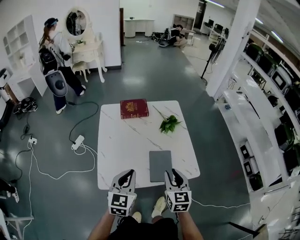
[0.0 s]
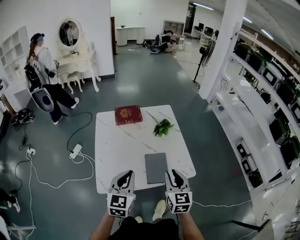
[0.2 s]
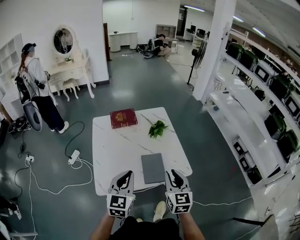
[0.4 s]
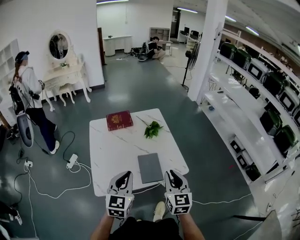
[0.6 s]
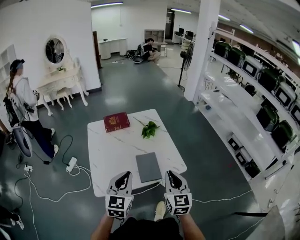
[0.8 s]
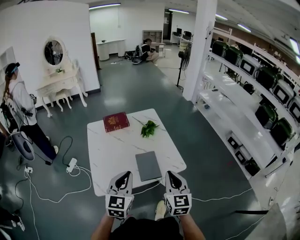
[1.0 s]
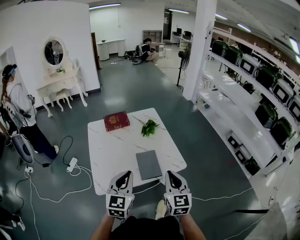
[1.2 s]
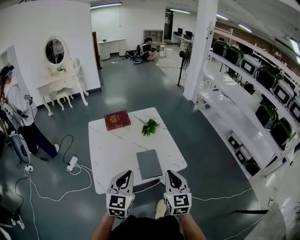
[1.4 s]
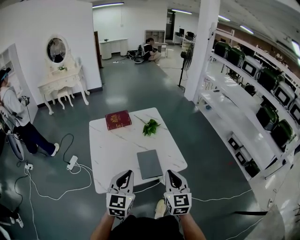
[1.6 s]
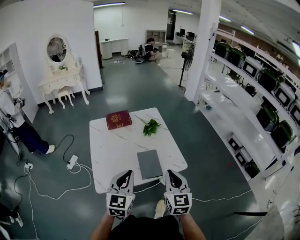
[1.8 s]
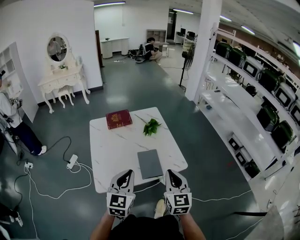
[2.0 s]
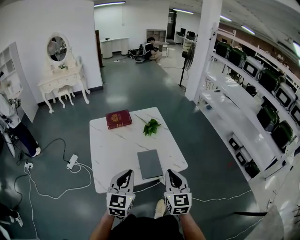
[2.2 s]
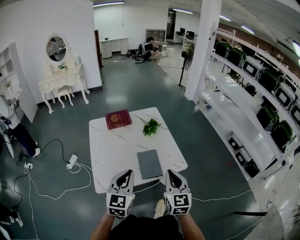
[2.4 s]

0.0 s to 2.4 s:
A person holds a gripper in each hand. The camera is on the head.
0.0 to 1.2 s: The left gripper goes roughly 10 cm backward, to the right and upward. The right gripper moves backward, upward and to the right, about 15 cm.
1.2 to 2.4 s: The two grippers keep their place.

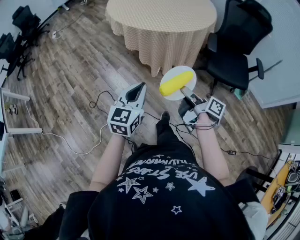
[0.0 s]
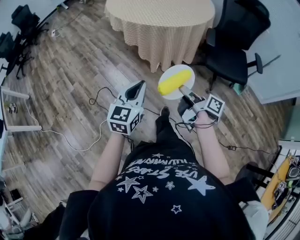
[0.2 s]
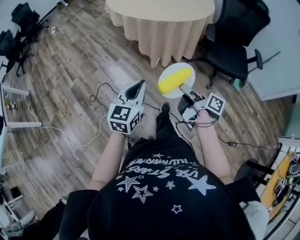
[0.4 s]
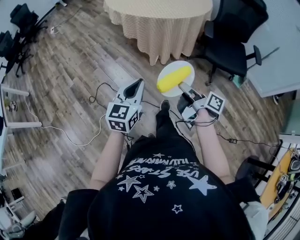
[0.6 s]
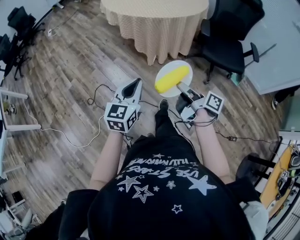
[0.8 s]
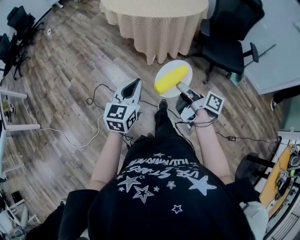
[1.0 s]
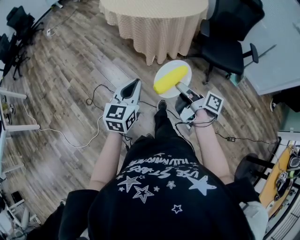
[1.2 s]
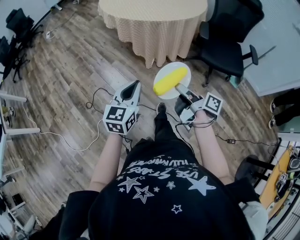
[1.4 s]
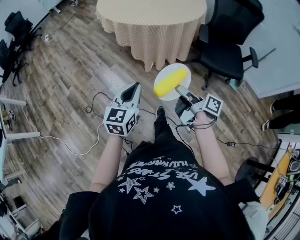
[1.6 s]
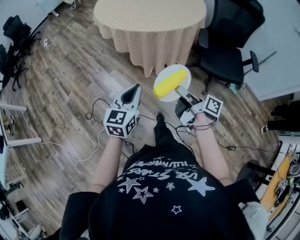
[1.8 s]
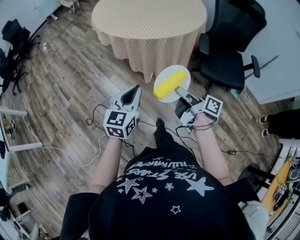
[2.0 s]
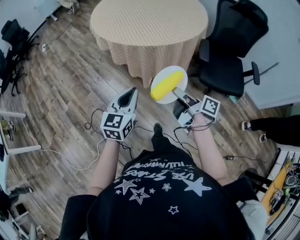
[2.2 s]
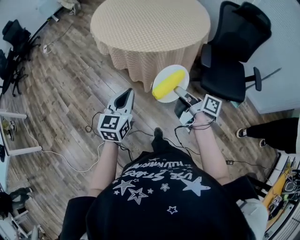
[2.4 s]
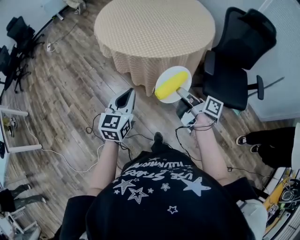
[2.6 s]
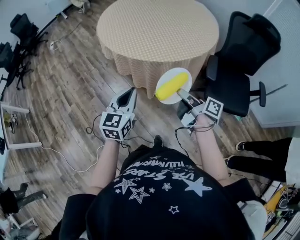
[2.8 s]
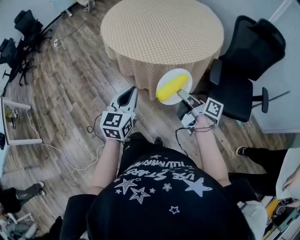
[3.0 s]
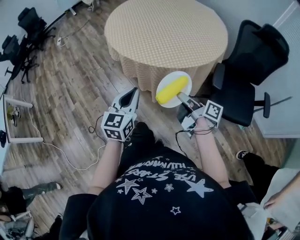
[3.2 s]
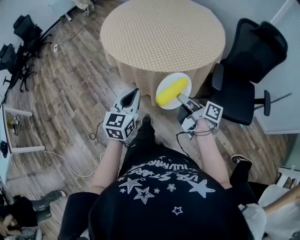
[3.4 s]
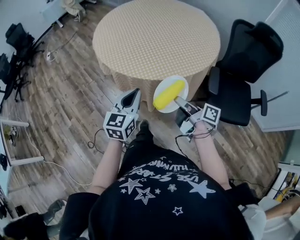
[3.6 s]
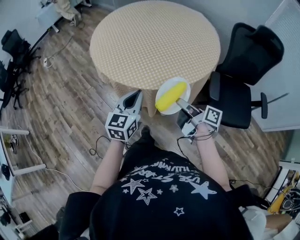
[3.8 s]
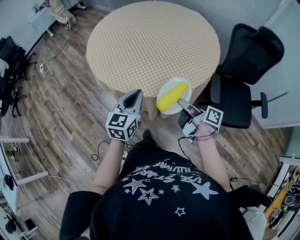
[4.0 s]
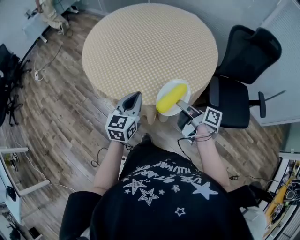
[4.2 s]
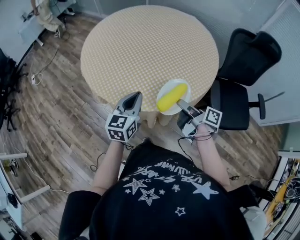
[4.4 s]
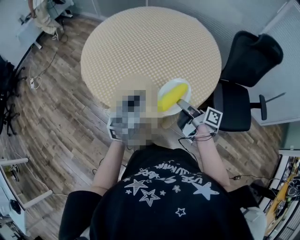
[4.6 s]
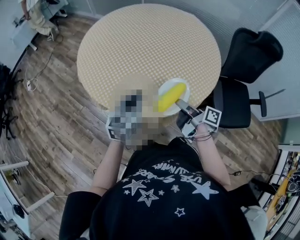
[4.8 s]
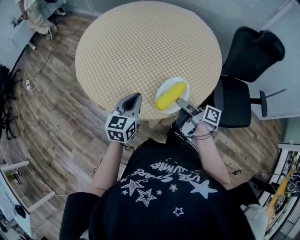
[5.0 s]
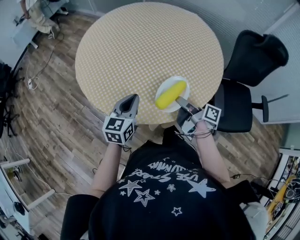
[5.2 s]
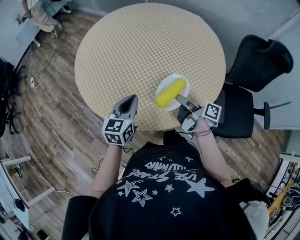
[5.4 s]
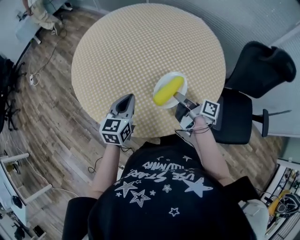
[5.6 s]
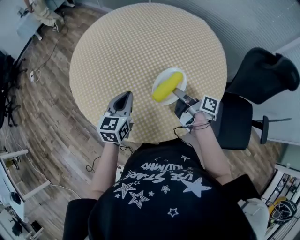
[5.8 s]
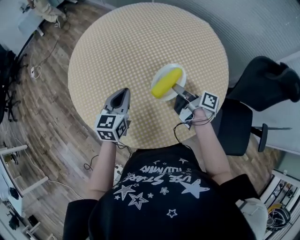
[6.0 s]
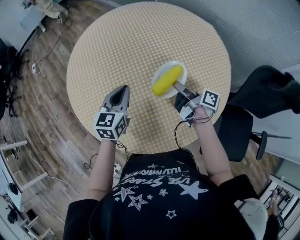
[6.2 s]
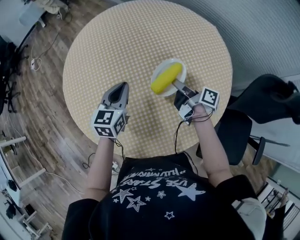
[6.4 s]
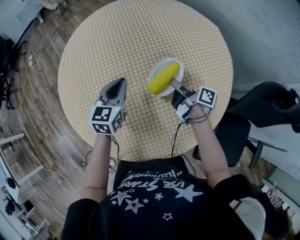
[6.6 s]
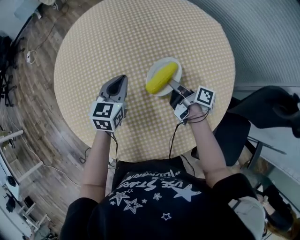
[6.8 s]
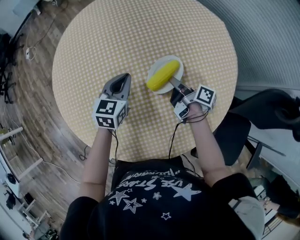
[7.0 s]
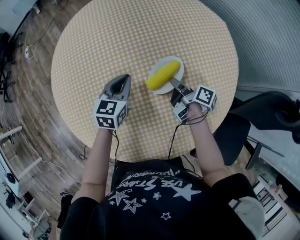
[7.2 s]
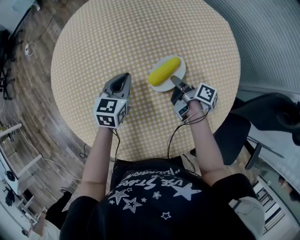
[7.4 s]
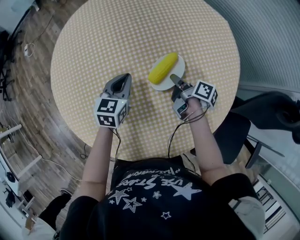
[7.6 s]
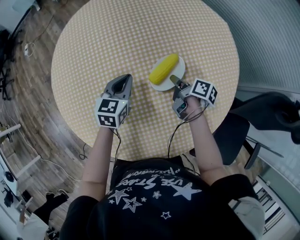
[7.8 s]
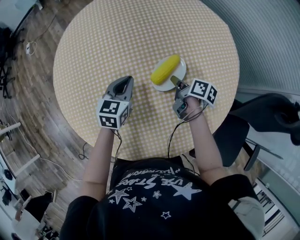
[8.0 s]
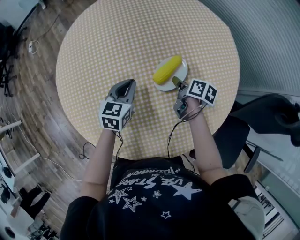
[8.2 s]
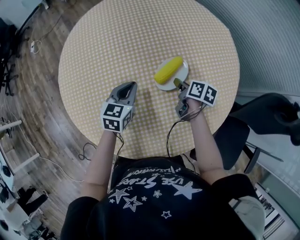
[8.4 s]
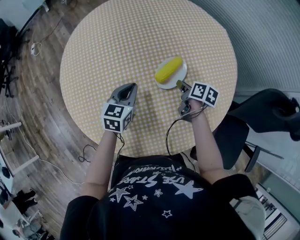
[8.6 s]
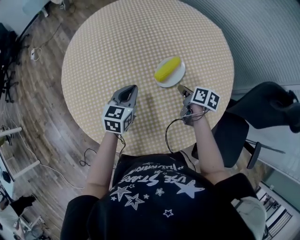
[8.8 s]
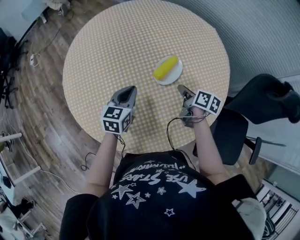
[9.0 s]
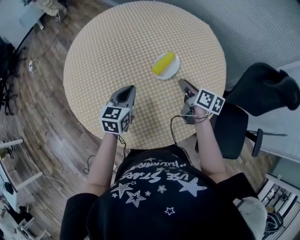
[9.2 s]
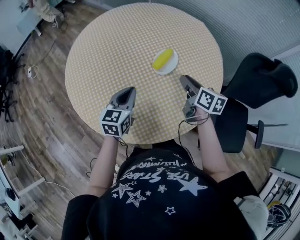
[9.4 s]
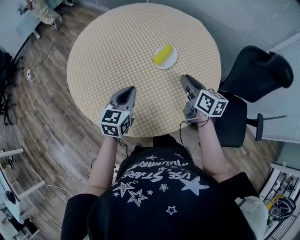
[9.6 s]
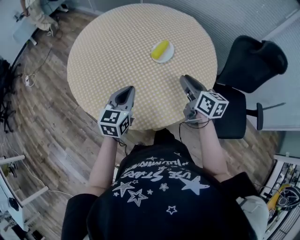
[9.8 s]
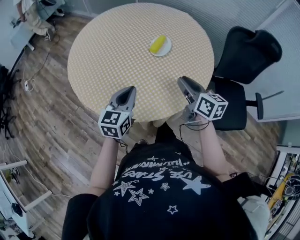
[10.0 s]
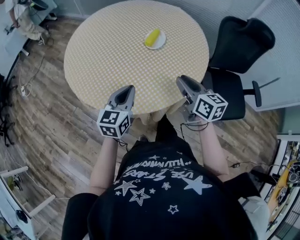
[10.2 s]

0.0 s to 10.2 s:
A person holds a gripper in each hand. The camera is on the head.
0.0 to 1.4 s: Both grippers move backward, about 5 cm.
1.4 to 3.0 s: The grippers both shift forward by approximately 30 cm.
3.0 to 4.4 s: The grippers both shift forward by approximately 25 cm.
4.4 to 5.8 s: The two grippers go approximately 20 cm forward.
5.8 to 7.2 s: The right gripper is displaced forward and downward by roughly 20 cm; the left gripper shifts approximately 20 cm forward, to the right and downward.
7.2 to 8.8 s: The grippers both shift backward by some 5 cm. The right gripper changes its angle by some 30 degrees.
8.8 to 10.2 s: The right gripper heads backward and upward, covering roughly 35 cm, and swivels some 40 degrees. Meanwhile the left gripper goes some 25 cm backward, and rotates approximately 20 degrees.

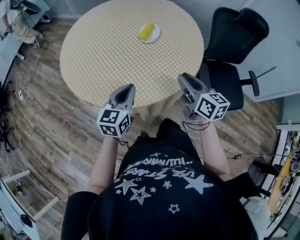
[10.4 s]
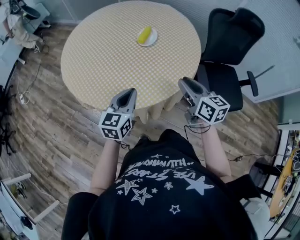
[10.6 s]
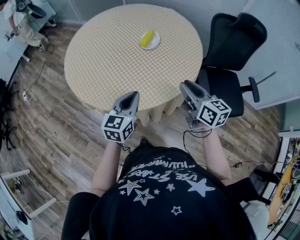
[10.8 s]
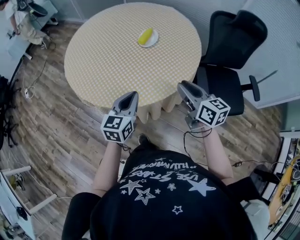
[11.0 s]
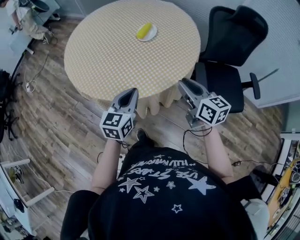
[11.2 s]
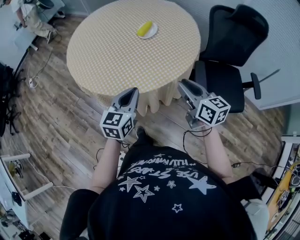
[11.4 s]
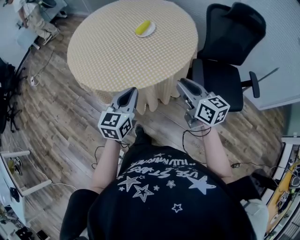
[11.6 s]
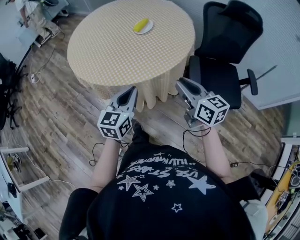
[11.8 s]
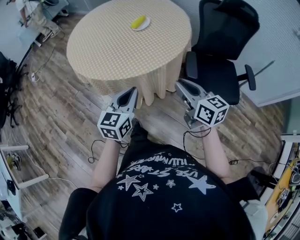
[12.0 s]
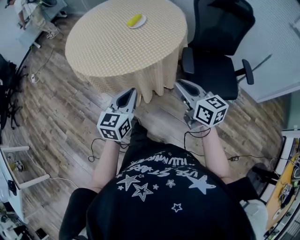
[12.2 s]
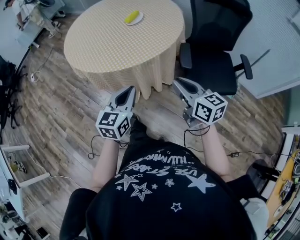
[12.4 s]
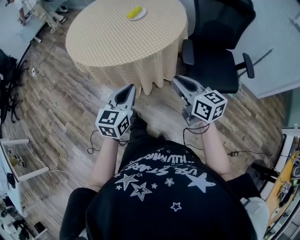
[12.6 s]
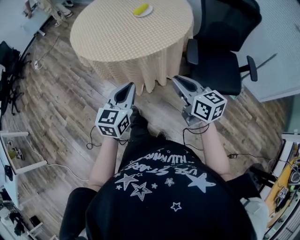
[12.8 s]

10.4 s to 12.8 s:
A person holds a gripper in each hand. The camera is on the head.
10.4 to 11.6 s: The grippers both shift backward and to the right by some 15 cm.
11.6 to 12.8 s: Both grippers move backward, approximately 15 cm.

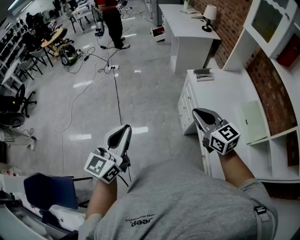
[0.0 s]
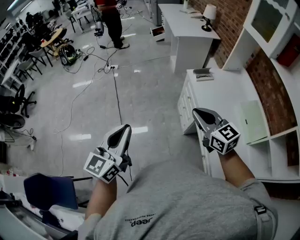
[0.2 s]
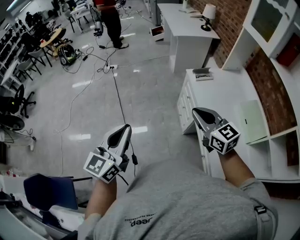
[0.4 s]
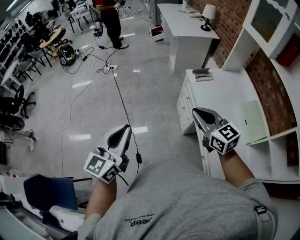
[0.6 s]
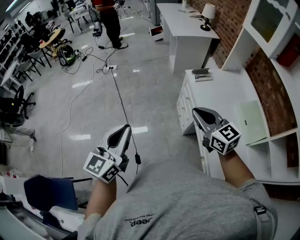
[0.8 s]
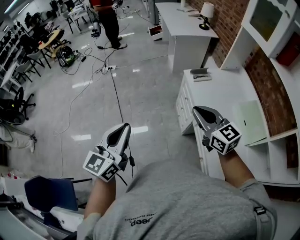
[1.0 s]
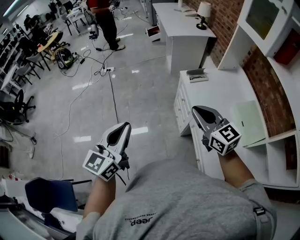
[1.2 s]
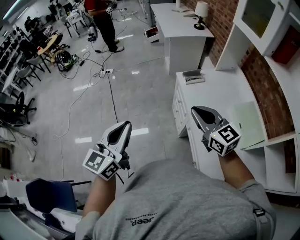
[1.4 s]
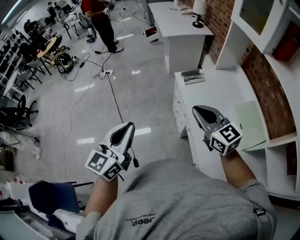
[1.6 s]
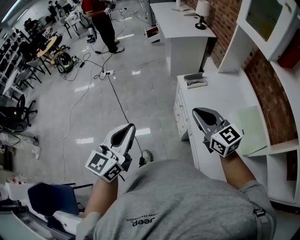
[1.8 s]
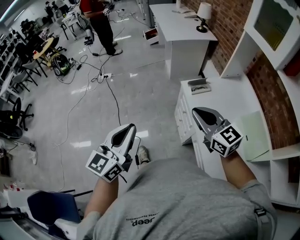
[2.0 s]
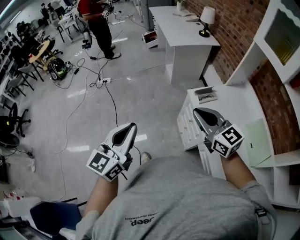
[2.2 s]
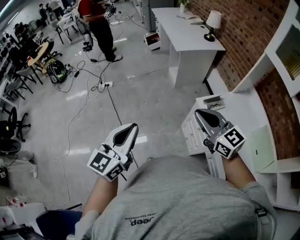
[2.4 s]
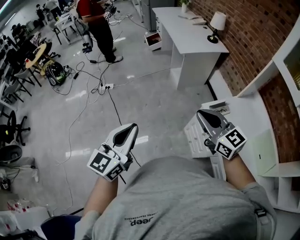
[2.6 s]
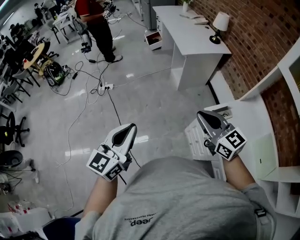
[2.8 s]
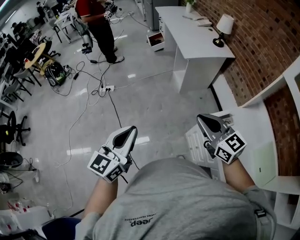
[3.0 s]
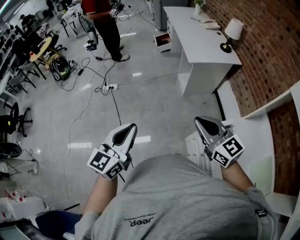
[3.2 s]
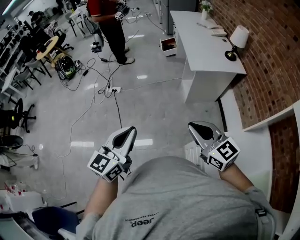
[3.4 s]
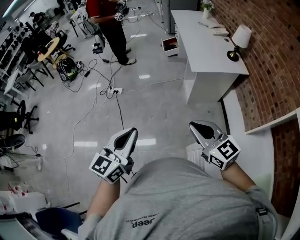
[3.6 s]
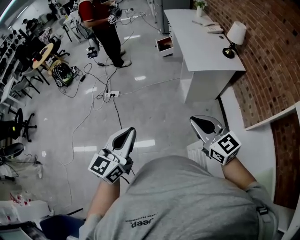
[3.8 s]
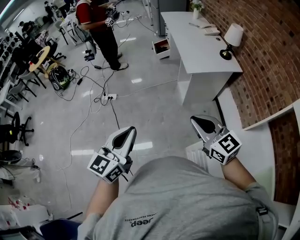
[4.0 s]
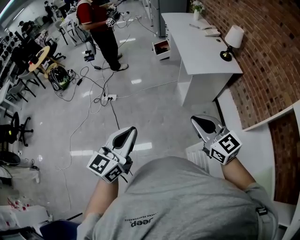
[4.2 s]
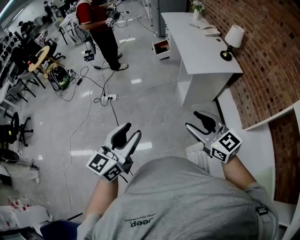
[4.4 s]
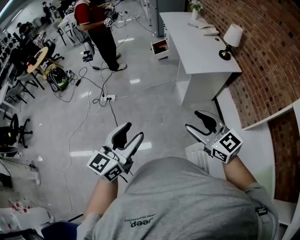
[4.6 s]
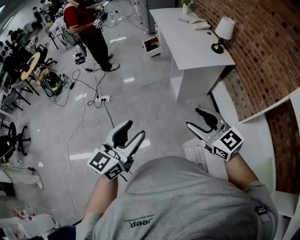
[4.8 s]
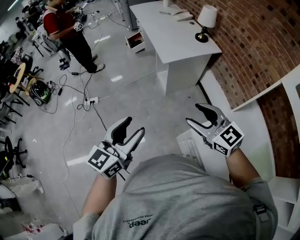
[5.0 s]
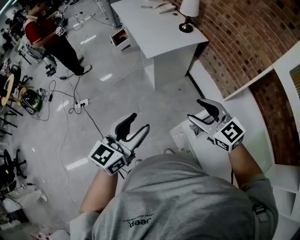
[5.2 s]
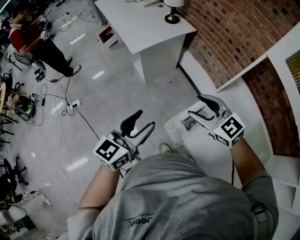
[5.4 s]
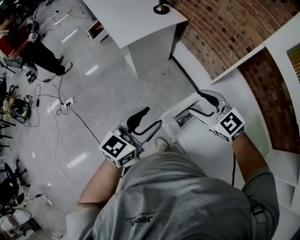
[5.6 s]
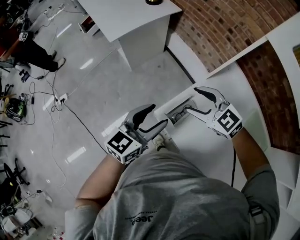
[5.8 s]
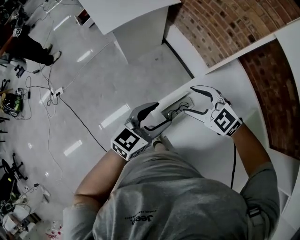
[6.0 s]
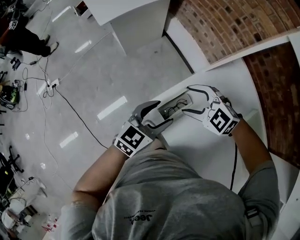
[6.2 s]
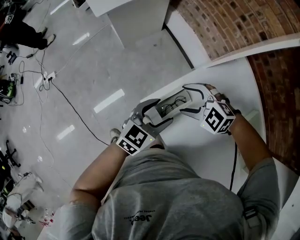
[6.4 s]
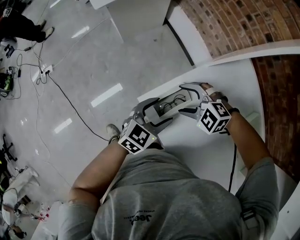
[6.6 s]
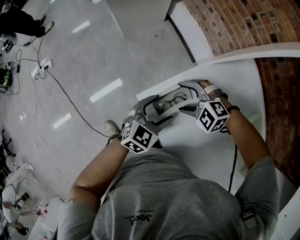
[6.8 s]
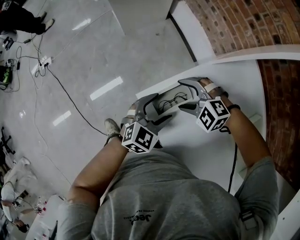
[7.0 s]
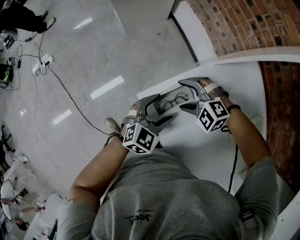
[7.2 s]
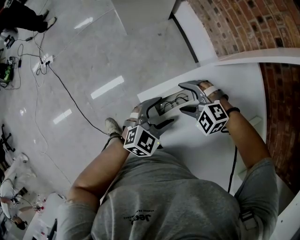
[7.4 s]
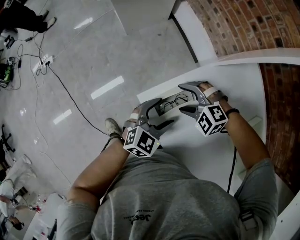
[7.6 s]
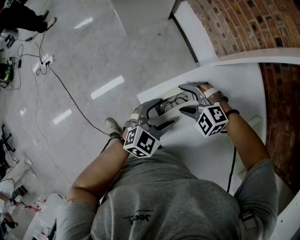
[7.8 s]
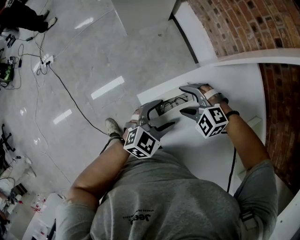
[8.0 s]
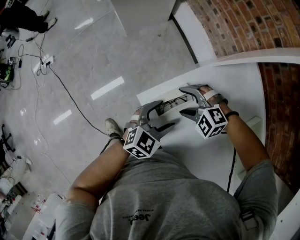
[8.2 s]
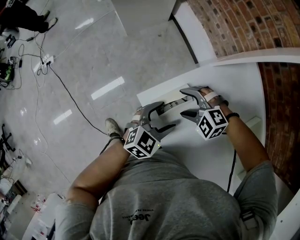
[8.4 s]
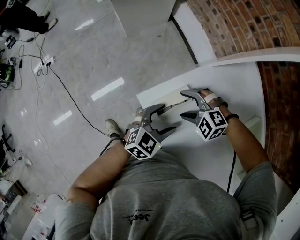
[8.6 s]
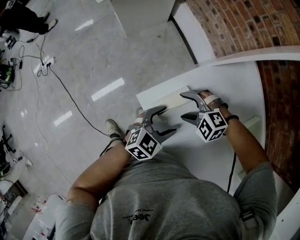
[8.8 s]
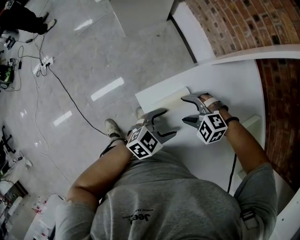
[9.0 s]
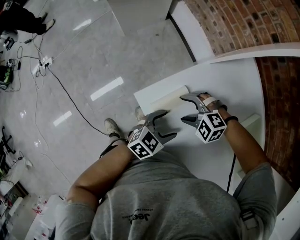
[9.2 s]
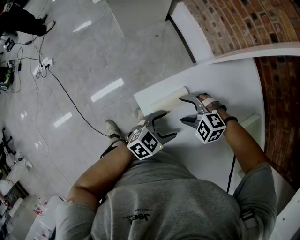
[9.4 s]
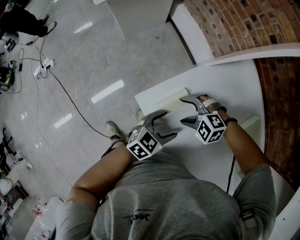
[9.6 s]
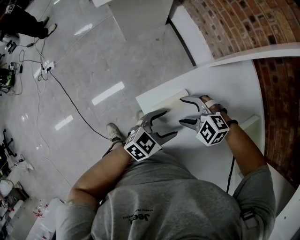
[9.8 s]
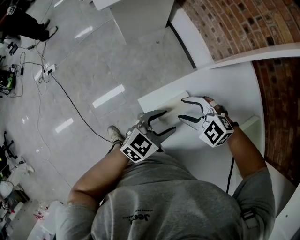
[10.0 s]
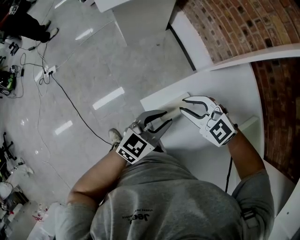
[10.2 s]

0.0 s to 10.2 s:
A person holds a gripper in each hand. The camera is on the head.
0.0 to 1.4 s: The right gripper moves to the right, some 10 cm; the left gripper travels to the right and forward by some 10 cm.
1.4 to 3.0 s: The pair of grippers is taken forward and to the left, approximately 40 cm.
3.0 to 4.4 s: The left gripper travels forward and to the right by roughly 15 cm, and opens its fingers; the right gripper travels forward by some 15 cm, and opens.
4.4 to 5.8 s: The right gripper moves some 35 cm, and rotates roughly 30 degrees. The left gripper shifts by roughly 40 cm, and rotates about 40 degrees.
5.8 to 7.2 s: Both grippers move downward, about 20 cm. The right gripper swivels some 50 degrees. Meanwhile the left gripper turns by about 30 degrees.
7.2 to 8.8 s: The left gripper shifts by some 5 cm.
8.8 to 10.2 s: The two grippers go about 10 cm upward. The left gripper closes its fingers, while the right gripper swivels about 30 degrees, and closes its fingers.
